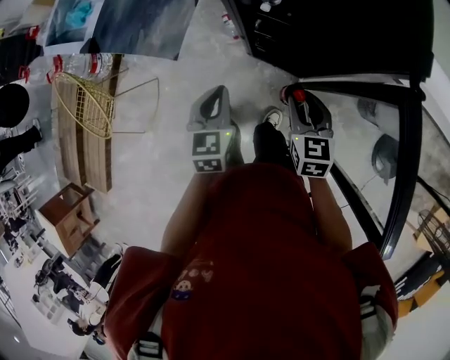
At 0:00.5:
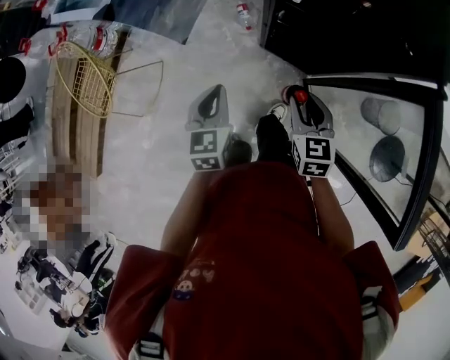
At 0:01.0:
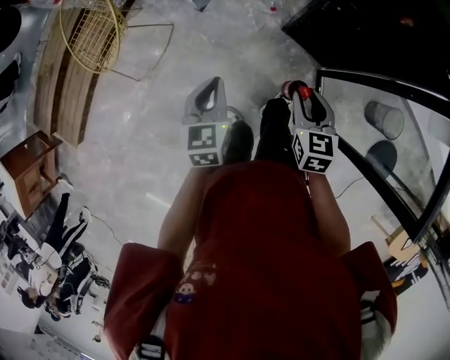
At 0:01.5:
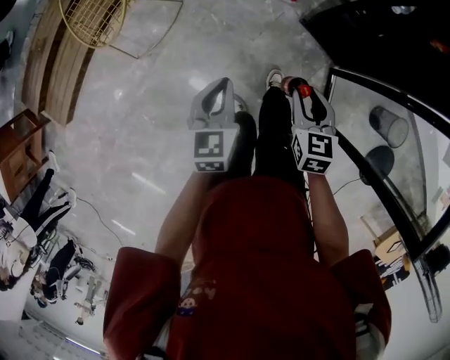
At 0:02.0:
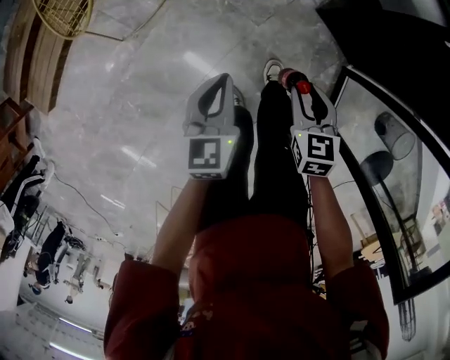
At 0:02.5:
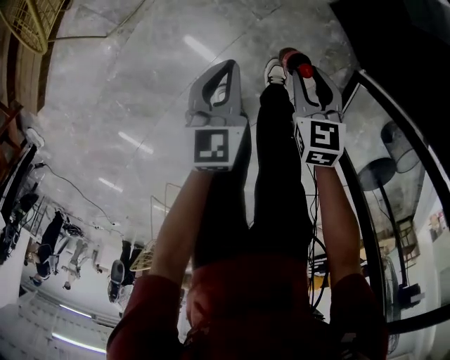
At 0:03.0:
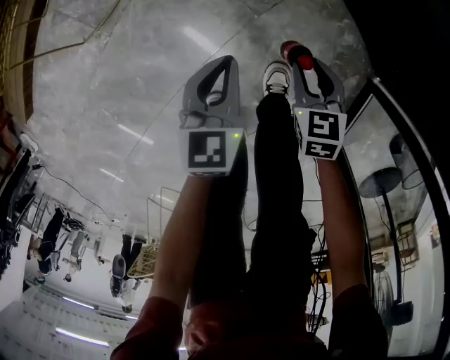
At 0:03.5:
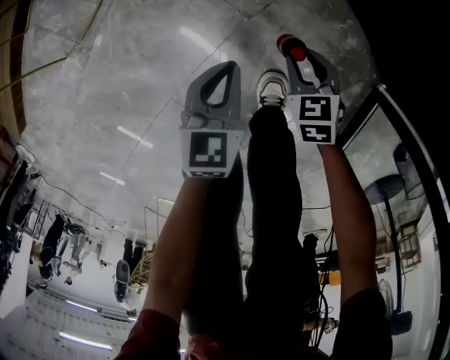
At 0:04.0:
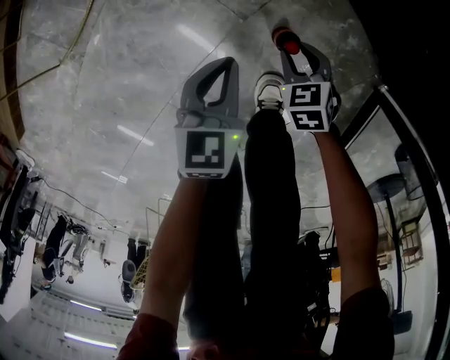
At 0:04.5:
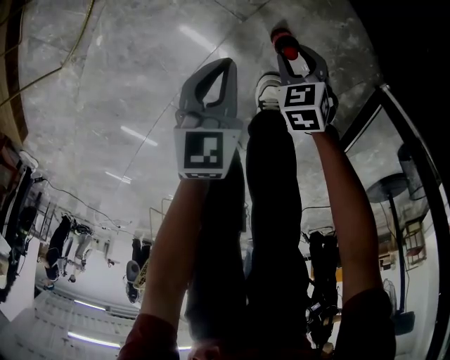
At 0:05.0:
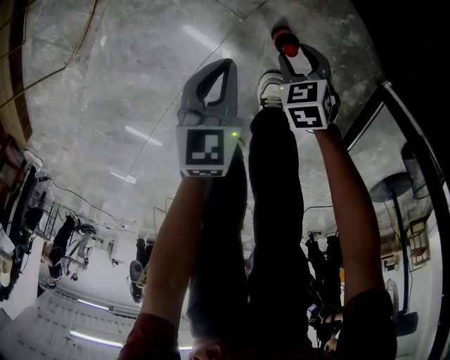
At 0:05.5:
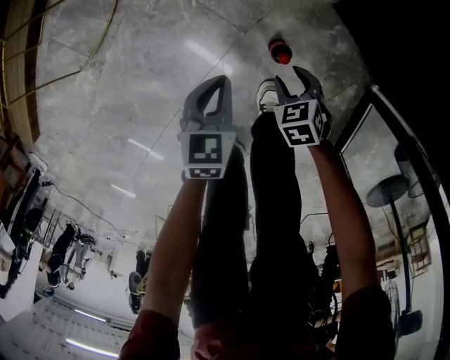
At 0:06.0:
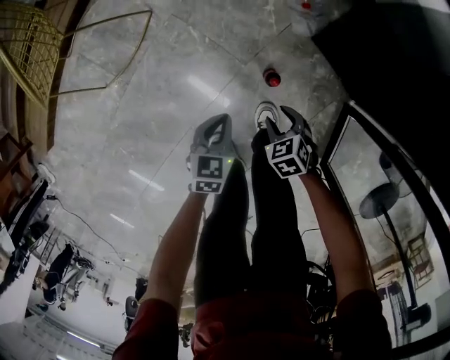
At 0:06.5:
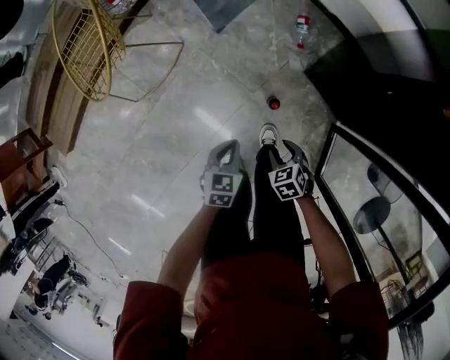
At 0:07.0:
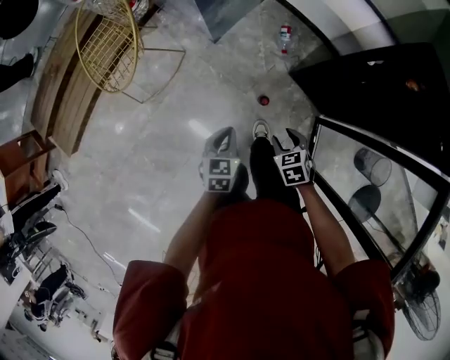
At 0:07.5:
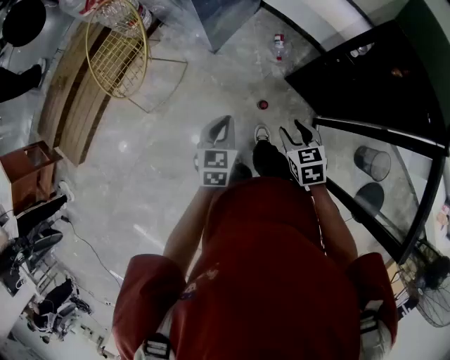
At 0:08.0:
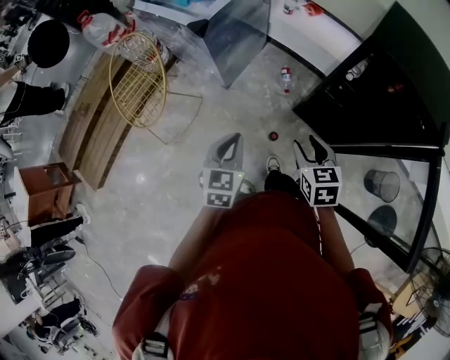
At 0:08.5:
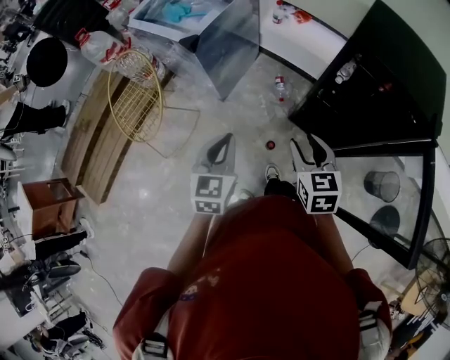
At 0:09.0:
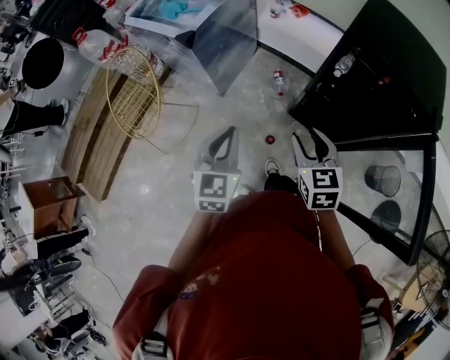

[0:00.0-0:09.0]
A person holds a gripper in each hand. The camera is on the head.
0:00.0 to 0:02.0: The grippers both shift to the left and downward by approximately 40 cm. The left gripper swivels roughly 30 degrees. Meanwhile the right gripper turns by some 30 degrees.
0:02.0 to 0:04.5: Both grippers move downward, roughly 50 cm. The right gripper turns by about 30 degrees.
0:04.5 to 0:07.0: The two grippers go about 50 cm upward.
0:07.0 to 0:09.0: Both grippers move upward, about 30 cm. The left gripper turns by about 30 degrees, while the right gripper swivels about 40 degrees.

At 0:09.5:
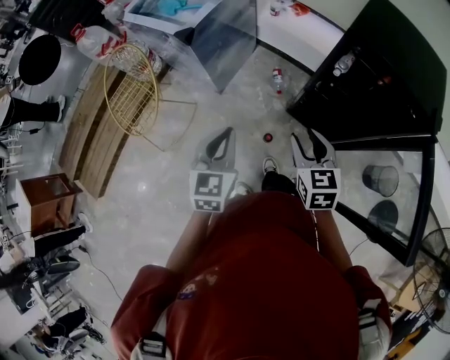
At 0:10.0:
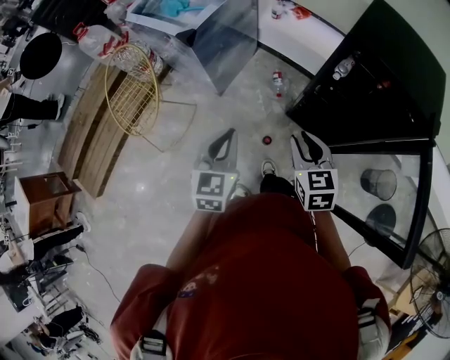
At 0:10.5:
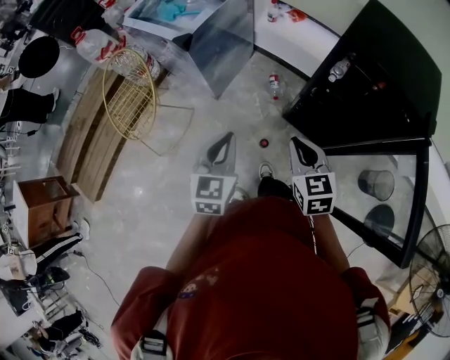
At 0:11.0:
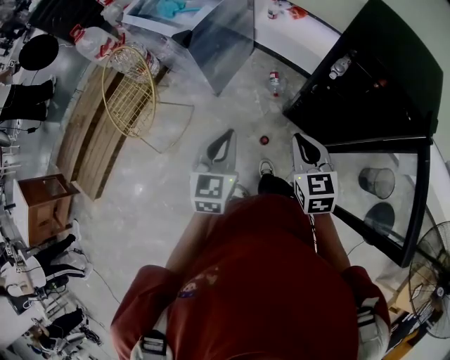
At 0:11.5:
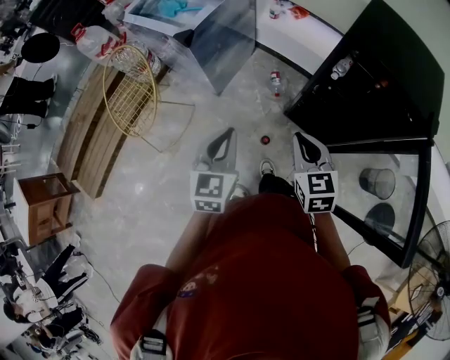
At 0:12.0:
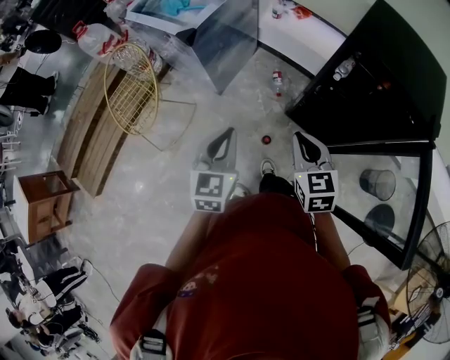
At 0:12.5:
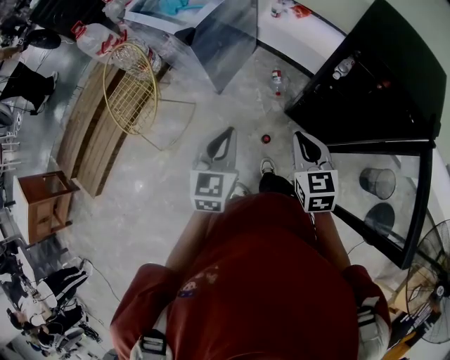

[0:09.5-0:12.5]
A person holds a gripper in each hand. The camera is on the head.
0:09.5 to 0:11.0: The right gripper closes its fingers.
0:11.0 to 0:12.5: Both grippers stay put.

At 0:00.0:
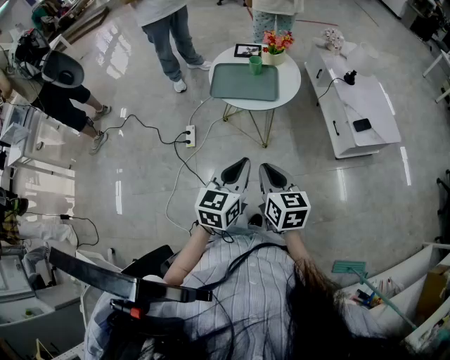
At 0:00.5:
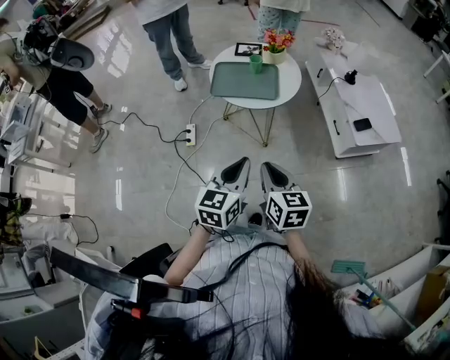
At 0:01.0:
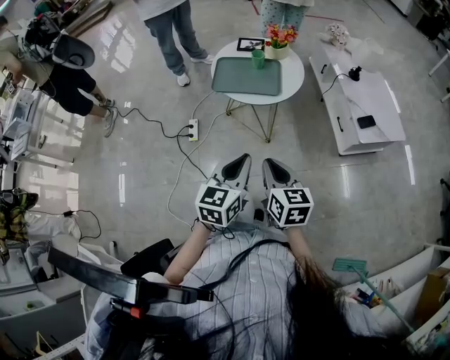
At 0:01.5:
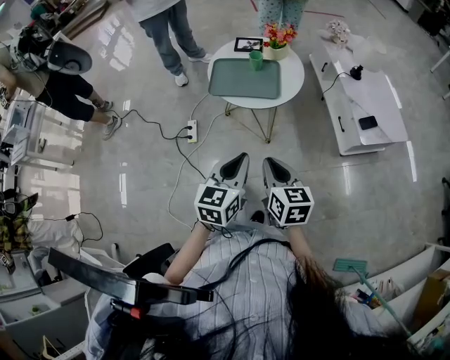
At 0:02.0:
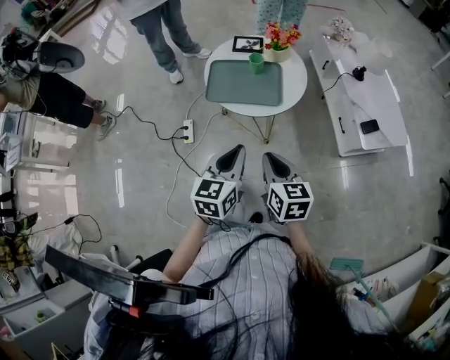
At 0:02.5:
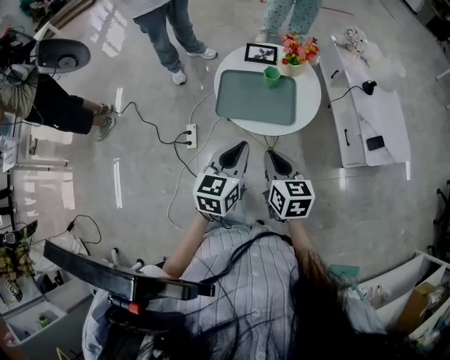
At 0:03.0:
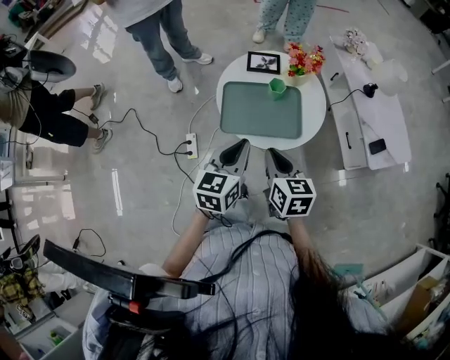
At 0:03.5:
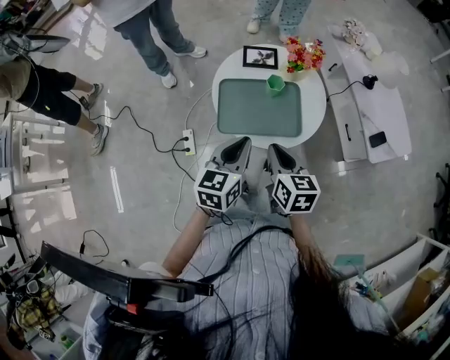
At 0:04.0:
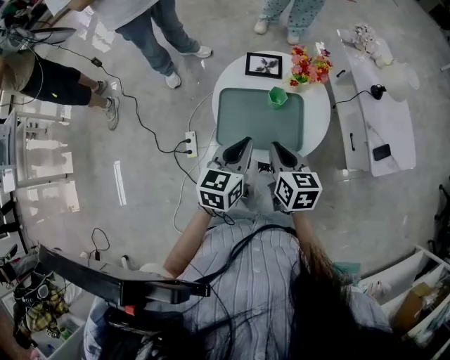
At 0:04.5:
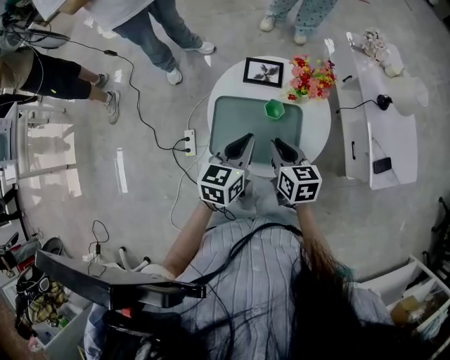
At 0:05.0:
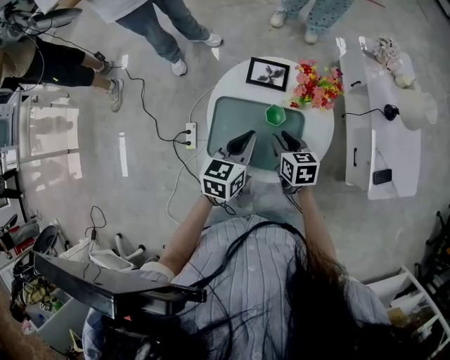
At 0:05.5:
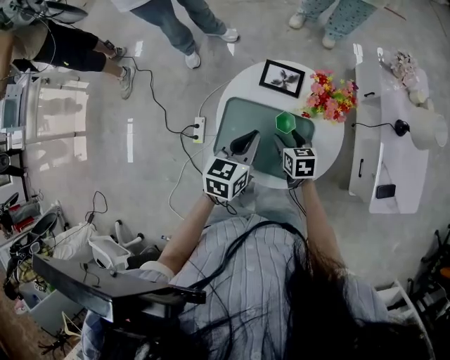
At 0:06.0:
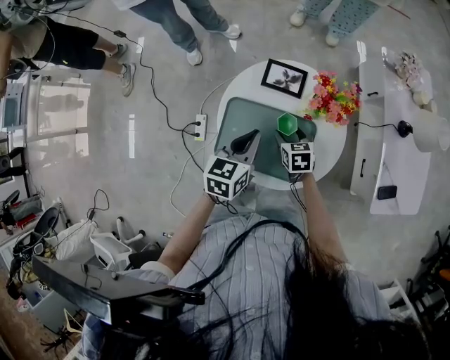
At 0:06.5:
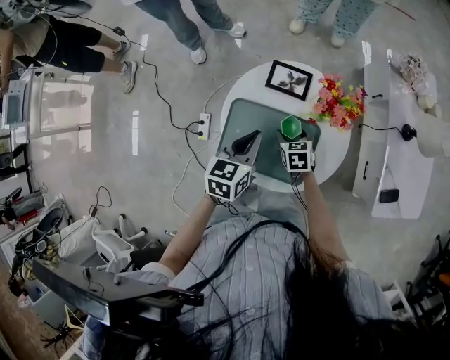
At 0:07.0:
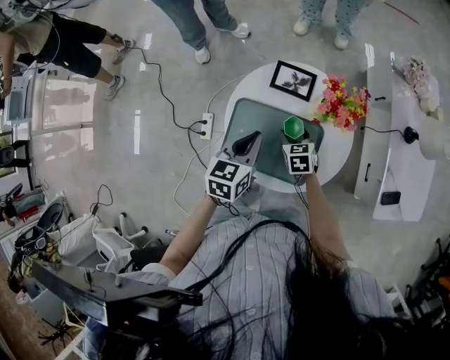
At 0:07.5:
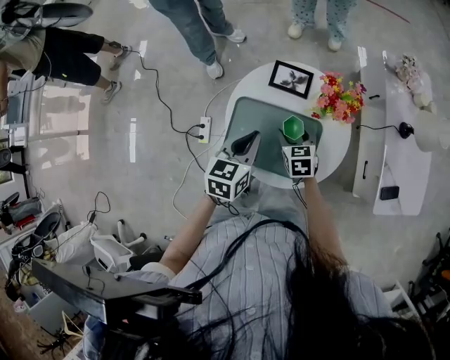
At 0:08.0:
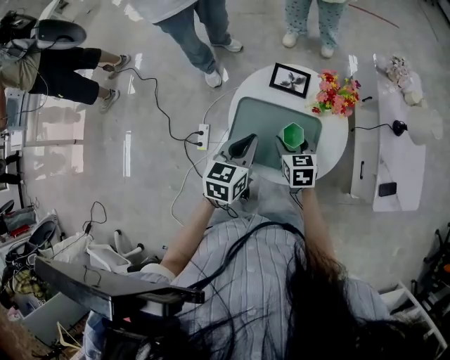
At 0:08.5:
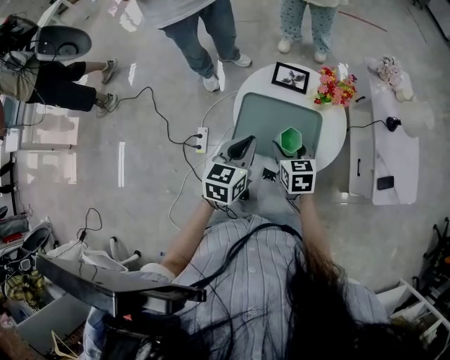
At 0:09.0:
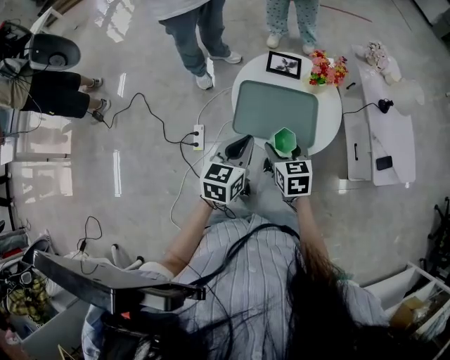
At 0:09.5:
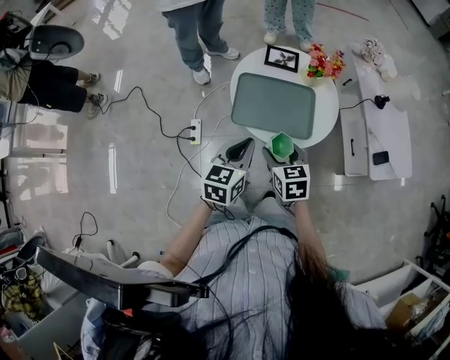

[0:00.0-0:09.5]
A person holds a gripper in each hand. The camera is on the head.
0:00.0 to 0:02.0: Both grippers move forward, some 15 cm.
0:02.0 to 0:04.0: Both grippers travel together forward, approximately 25 cm.
0:04.0 to 0:05.5: The right gripper goes roughly 20 cm downward and forward, rotates some 20 degrees, and opens up. Meanwhile the left gripper goes about 15 cm forward and downward.
0:05.5 to 0:07.5: There are only small adjustments of the grippers.
0:07.5 to 0:09.5: The right gripper moves backward and upward, roughly 25 cm. The left gripper goes roughly 20 cm backward.

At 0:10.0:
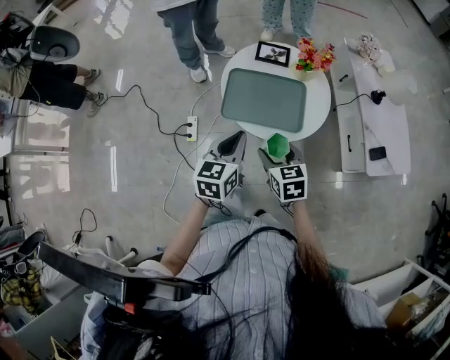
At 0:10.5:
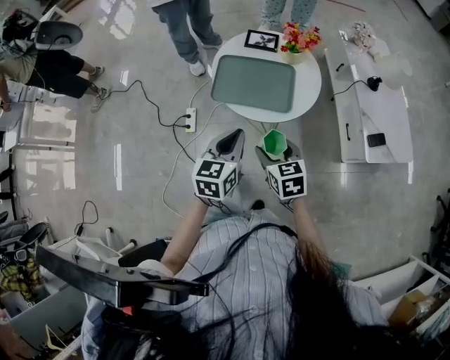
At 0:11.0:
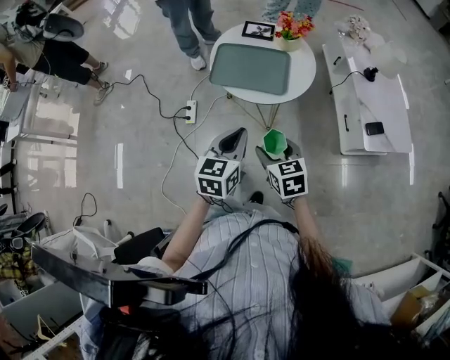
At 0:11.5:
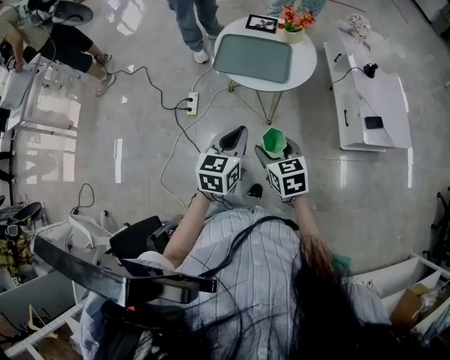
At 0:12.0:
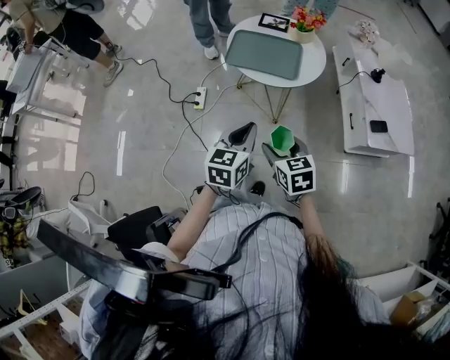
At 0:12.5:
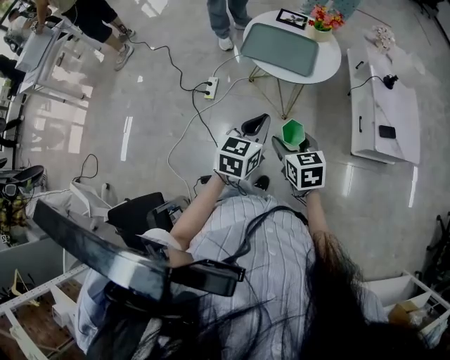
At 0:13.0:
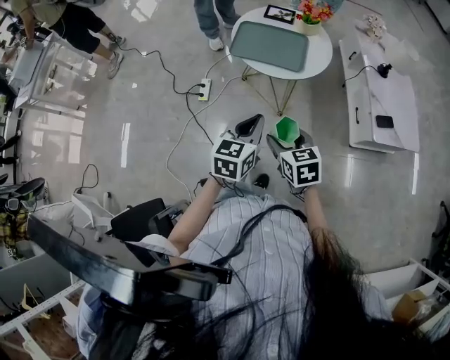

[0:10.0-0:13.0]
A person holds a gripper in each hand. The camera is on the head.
0:10.0 to 0:11.5: Both grippers move backward, some 20 cm.
0:11.5 to 0:13.0: There are only small adjustments of the grippers.

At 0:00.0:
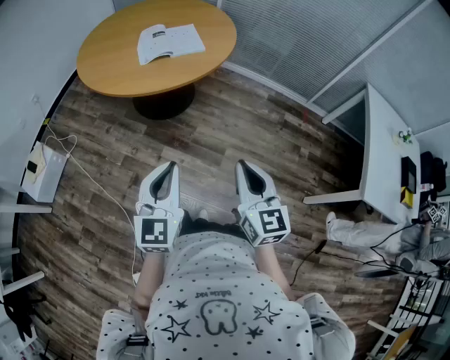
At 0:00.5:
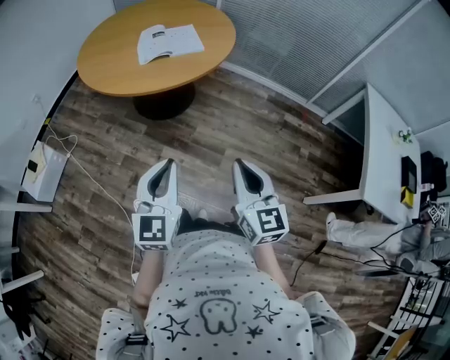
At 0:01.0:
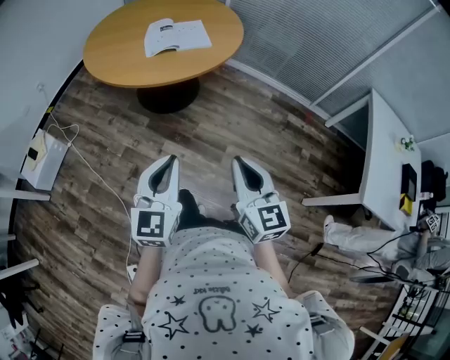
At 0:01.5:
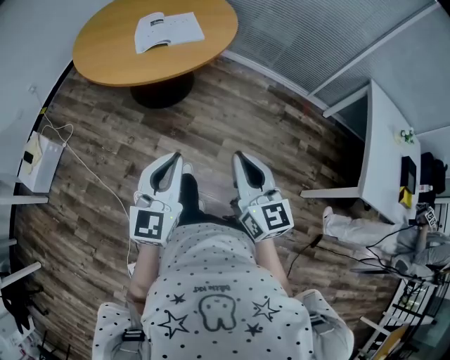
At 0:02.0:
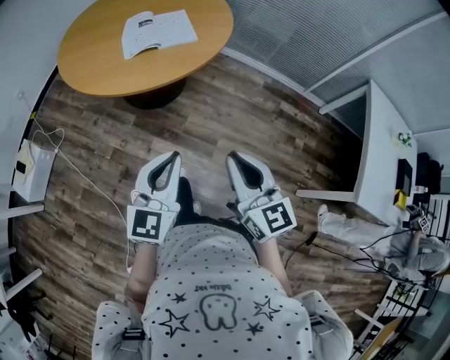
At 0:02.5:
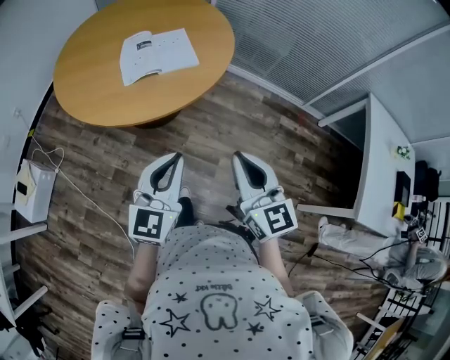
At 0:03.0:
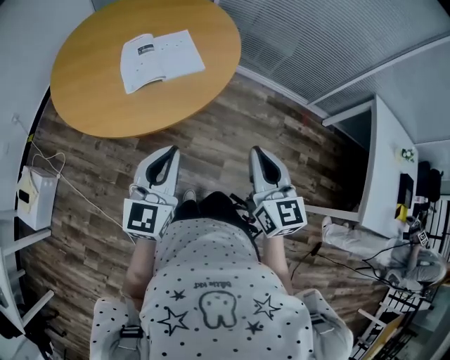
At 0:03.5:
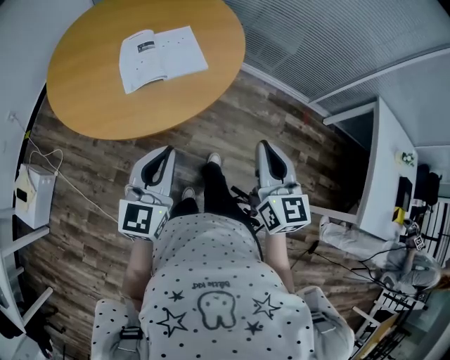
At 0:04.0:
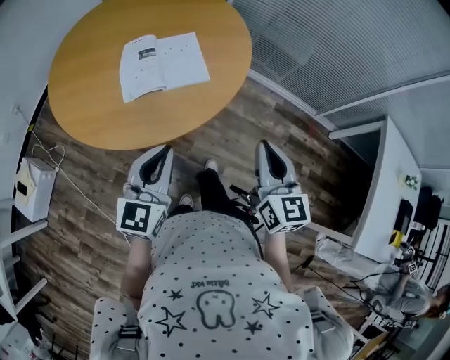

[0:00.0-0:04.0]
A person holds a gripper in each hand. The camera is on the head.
0:00.0 to 0:02.0: Both grippers travel together forward, approximately 10 cm.
0:02.0 to 0:04.0: The two grippers go about 30 cm forward.
